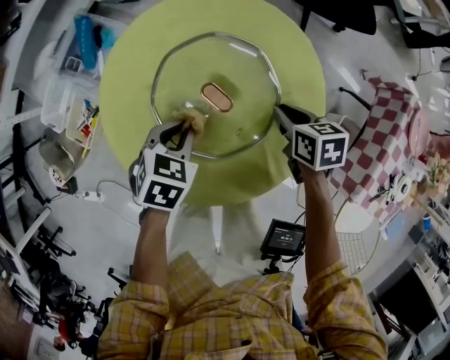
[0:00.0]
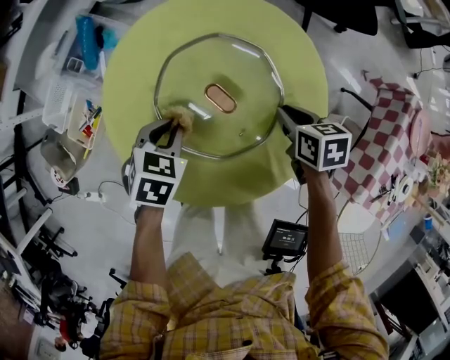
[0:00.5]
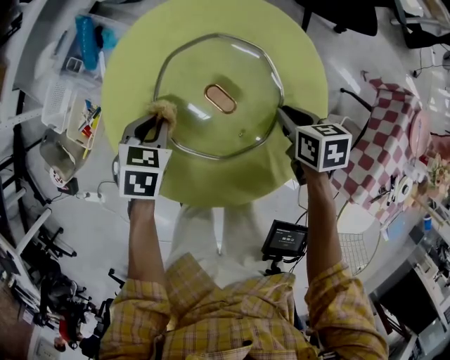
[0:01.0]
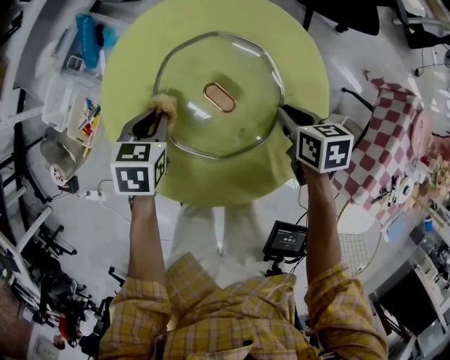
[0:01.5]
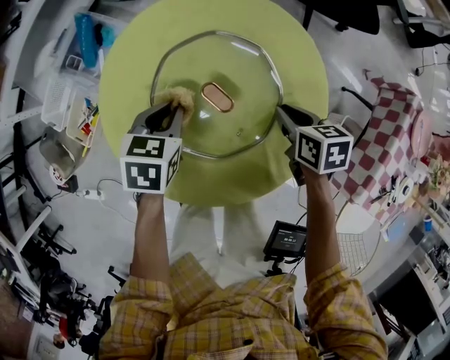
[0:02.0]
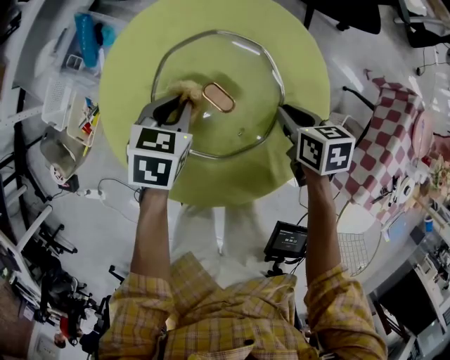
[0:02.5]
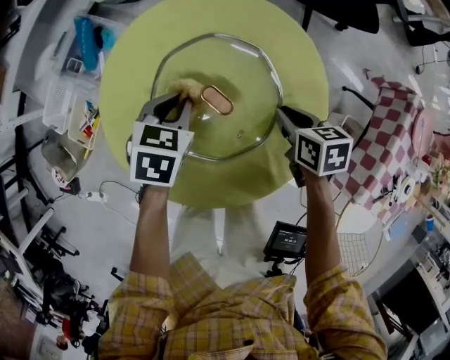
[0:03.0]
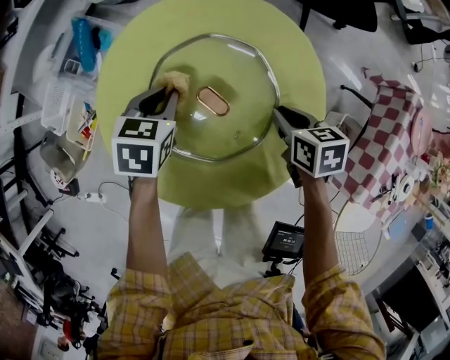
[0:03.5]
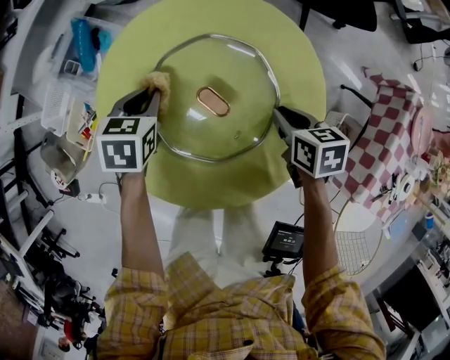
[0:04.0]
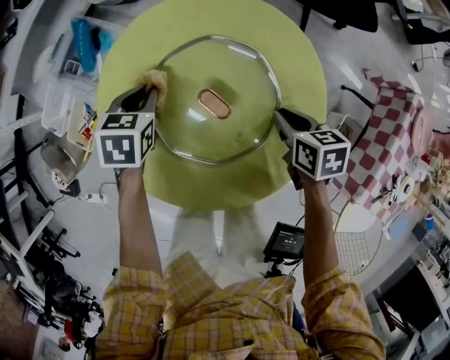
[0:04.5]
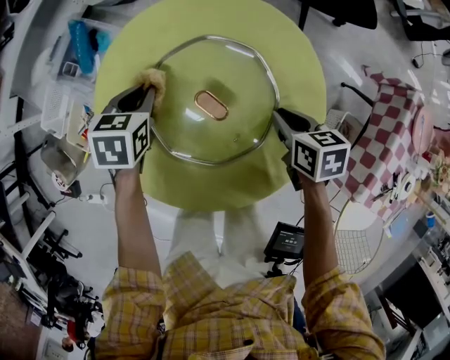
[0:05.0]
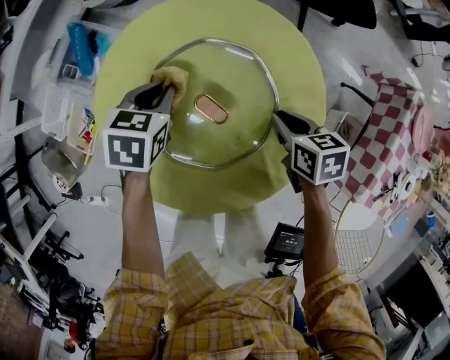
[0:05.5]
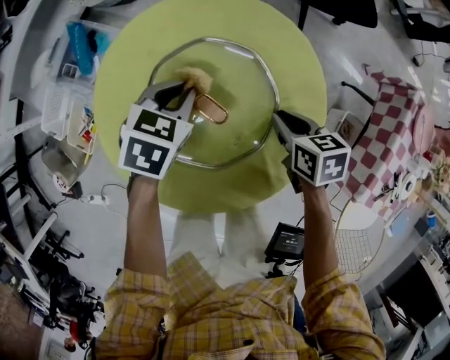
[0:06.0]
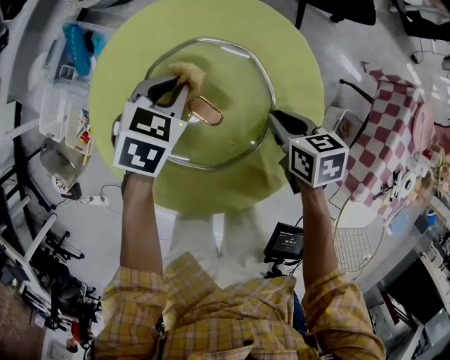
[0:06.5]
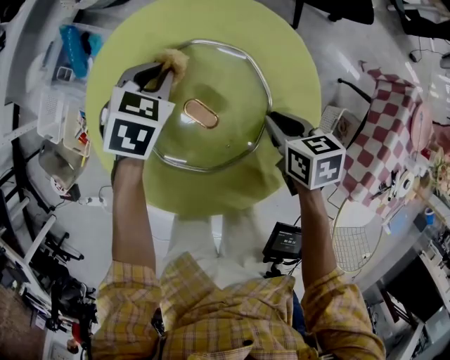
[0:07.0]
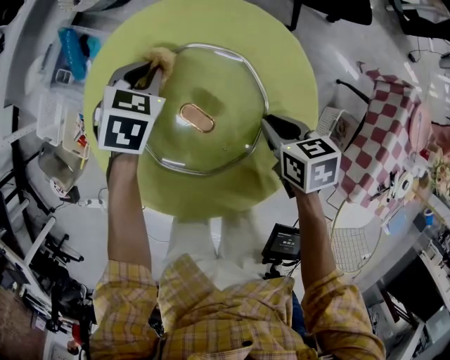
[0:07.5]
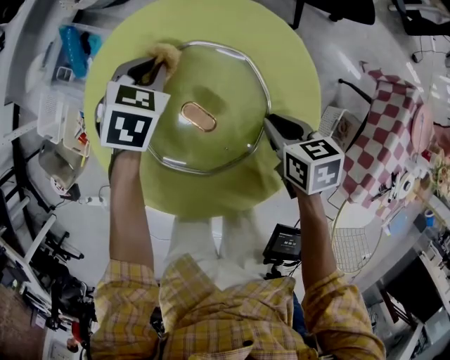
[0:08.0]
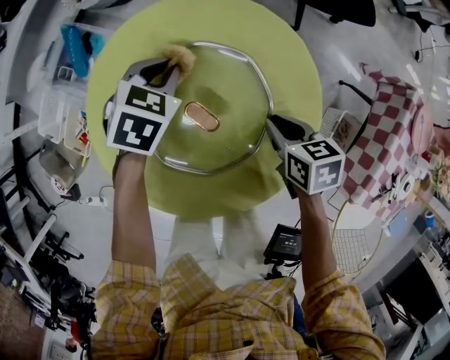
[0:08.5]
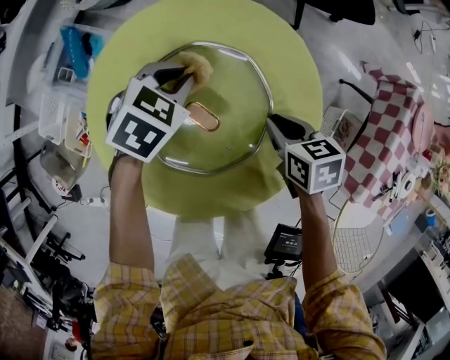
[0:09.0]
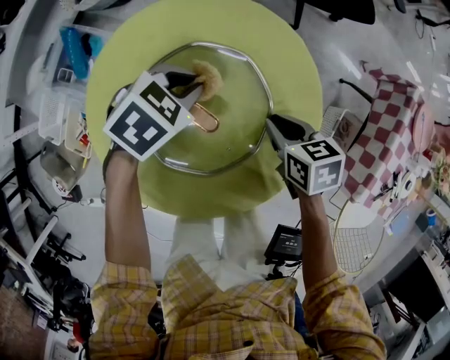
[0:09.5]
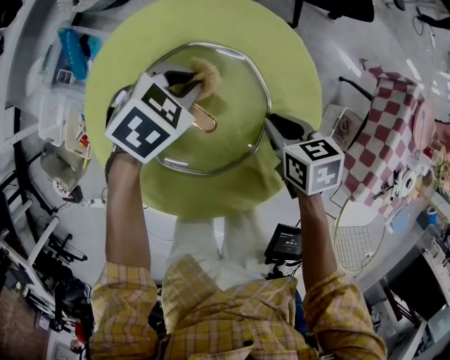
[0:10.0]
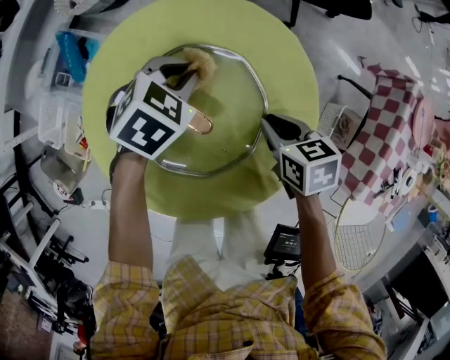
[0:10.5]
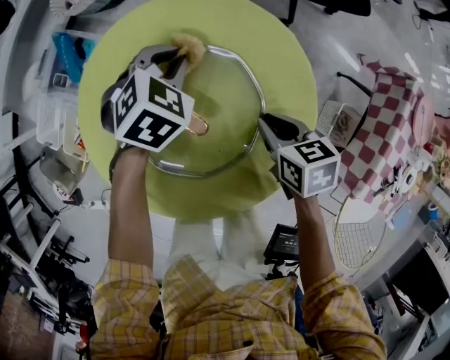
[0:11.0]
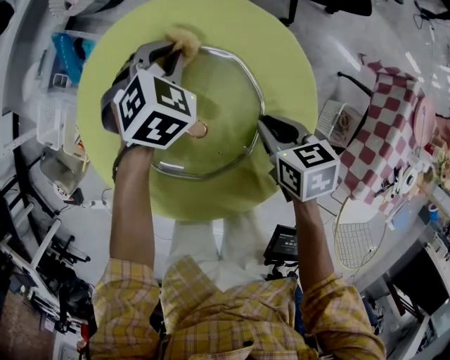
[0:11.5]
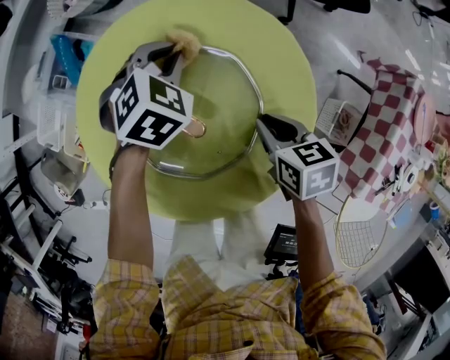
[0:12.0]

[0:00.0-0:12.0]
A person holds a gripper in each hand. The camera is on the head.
0:00.0 to 0:02.0: The left gripper heads forward, covering roughly 5 cm.
0:02.0 to 0:04.0: The left gripper goes approximately 5 cm forward.
0:04.0 to 0:06.0: The left gripper heads to the right, covering approximately 10 cm, and turns by some 20 degrees.
0:06.0 to 0:08.0: The left gripper heads forward, covering about 5 cm.
0:08.0 to 0:10.0: The left gripper changes place by some 10 cm, and swivels roughly 30 degrees.
0:10.0 to 0:12.0: The left gripper heads forward, covering about 5 cm, and rotates approximately 20 degrees.

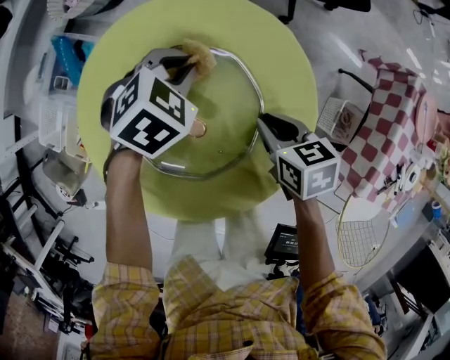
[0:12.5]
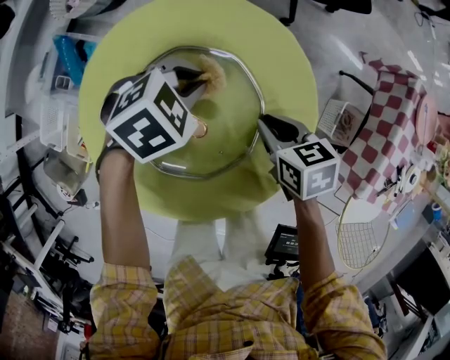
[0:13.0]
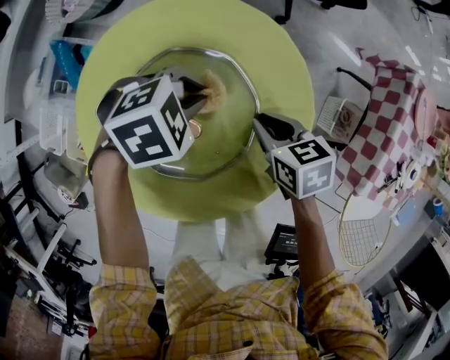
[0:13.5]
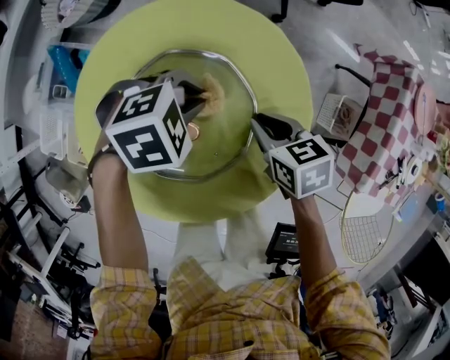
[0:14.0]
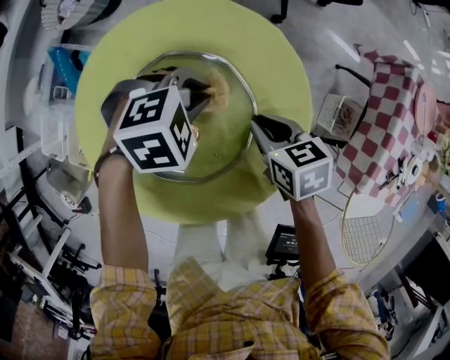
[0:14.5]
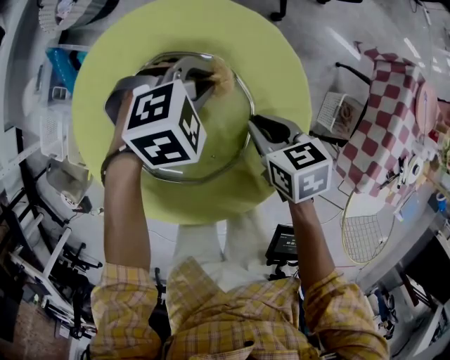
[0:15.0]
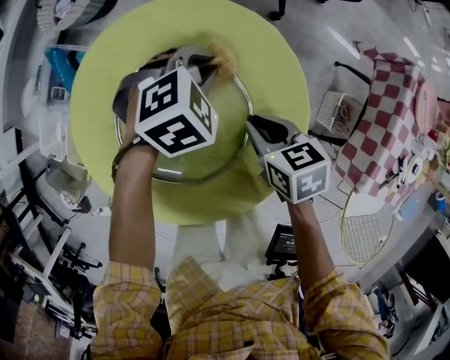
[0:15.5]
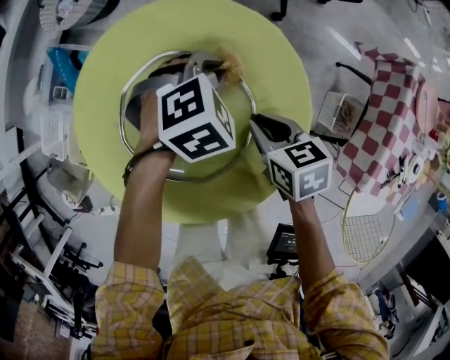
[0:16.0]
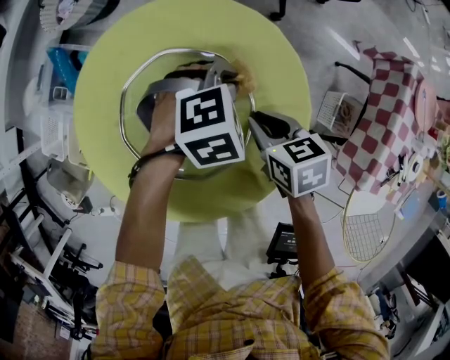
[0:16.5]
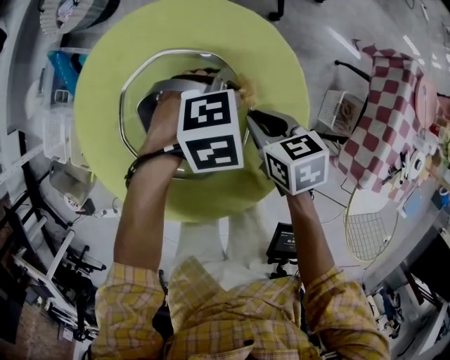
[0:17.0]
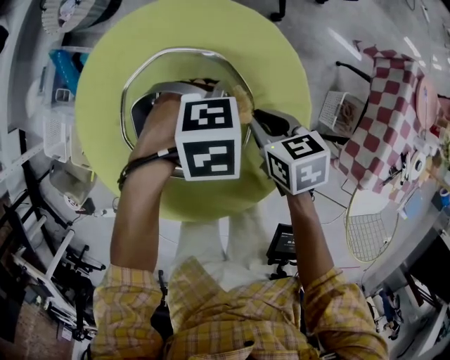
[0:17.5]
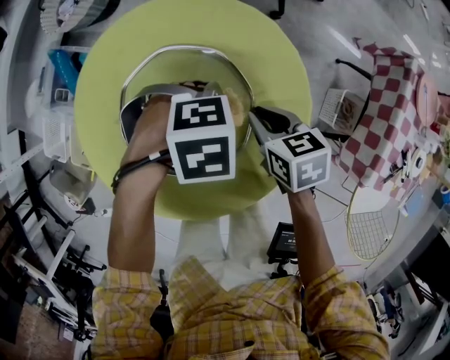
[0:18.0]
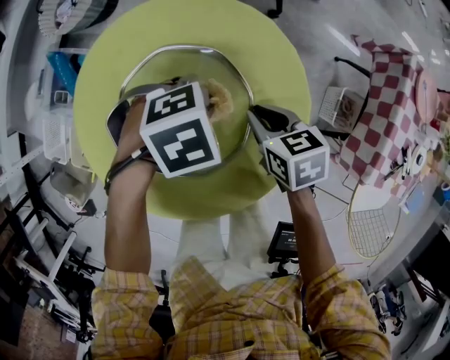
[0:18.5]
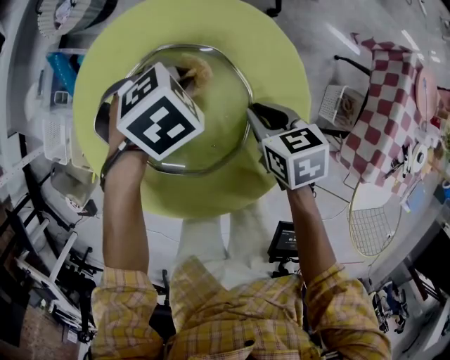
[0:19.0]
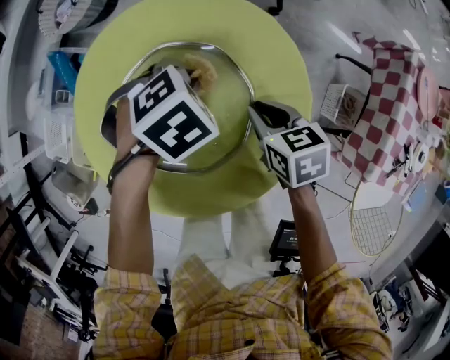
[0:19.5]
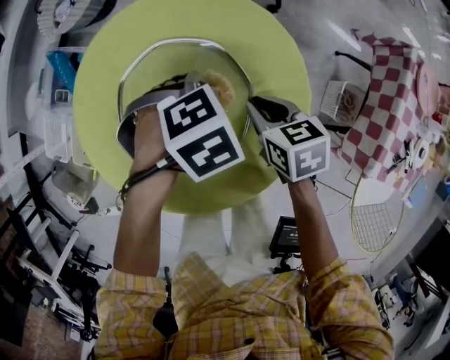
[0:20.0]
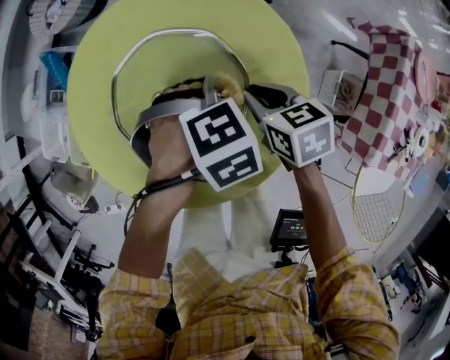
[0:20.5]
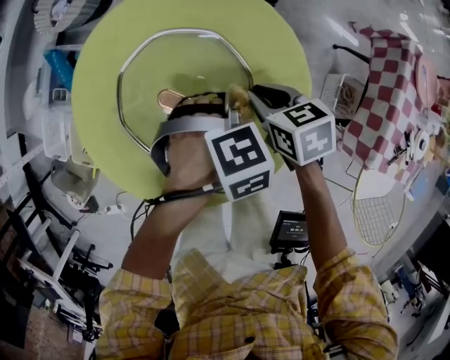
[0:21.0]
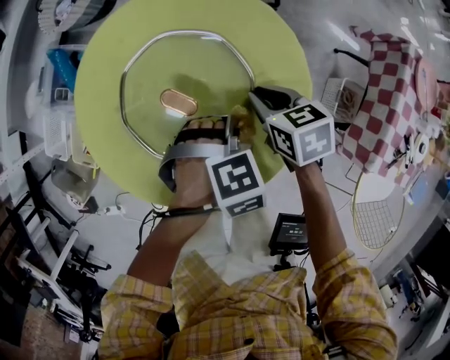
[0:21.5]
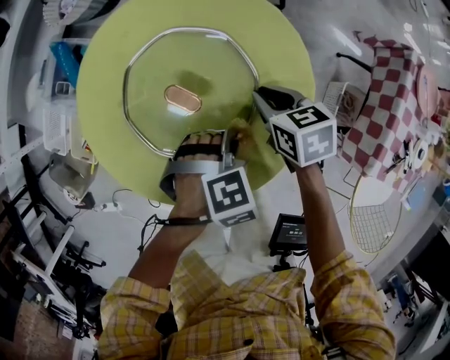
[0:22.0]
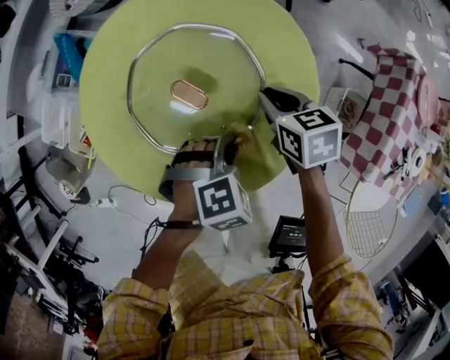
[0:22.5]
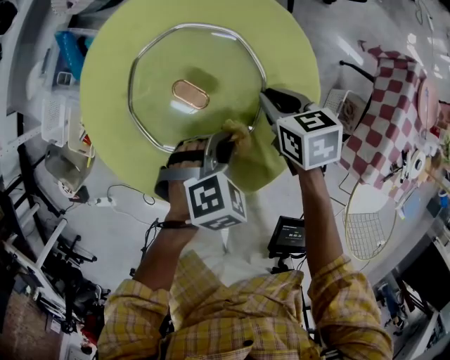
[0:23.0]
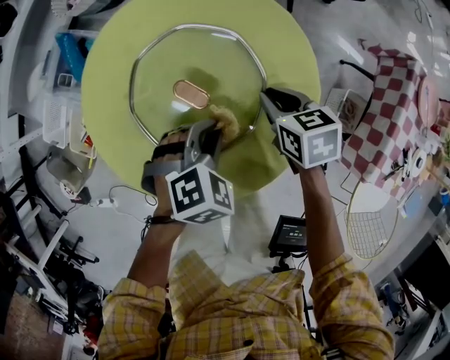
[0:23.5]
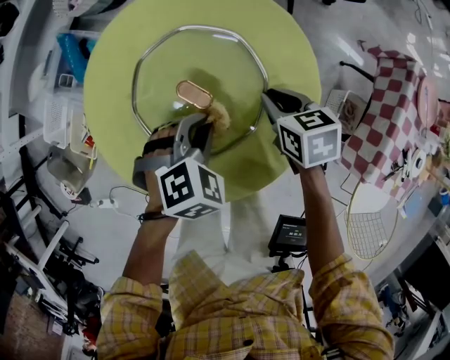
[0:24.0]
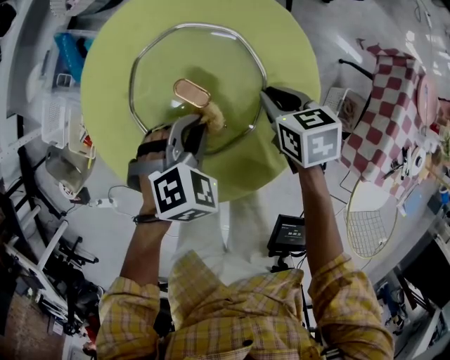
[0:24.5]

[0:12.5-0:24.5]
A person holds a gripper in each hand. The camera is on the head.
0:12.5 to 0:14.5: The left gripper changes place by approximately 5 cm, and changes its angle by roughly 30 degrees.
0:14.5 to 0:16.5: The left gripper moves about 5 cm.
0:16.5 to 0:18.5: The left gripper moves roughly 10 cm, and swivels roughly 20 degrees.
0:20.5 to 0:22.5: The left gripper moves roughly 10 cm.
0:22.5 to 0:24.5: The left gripper goes about 10 cm to the left and forward.

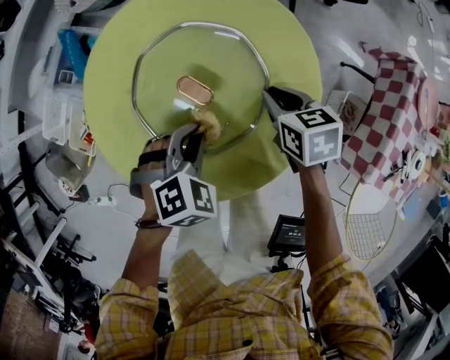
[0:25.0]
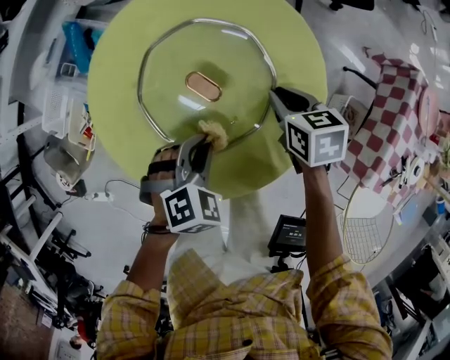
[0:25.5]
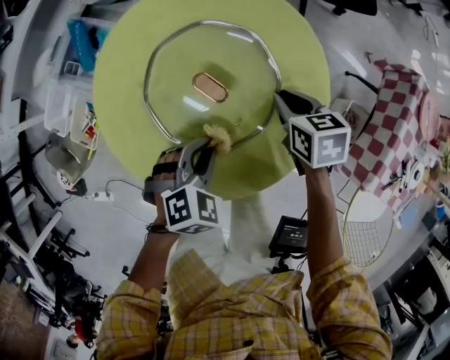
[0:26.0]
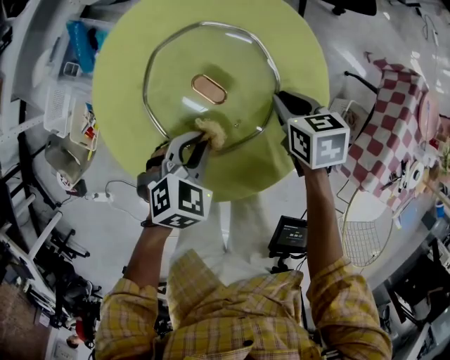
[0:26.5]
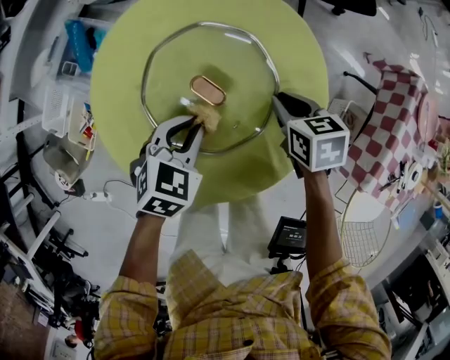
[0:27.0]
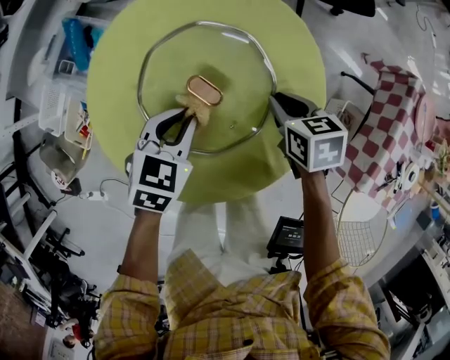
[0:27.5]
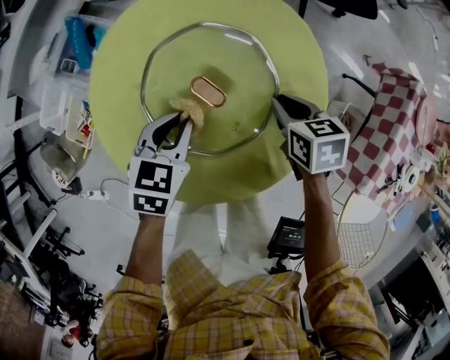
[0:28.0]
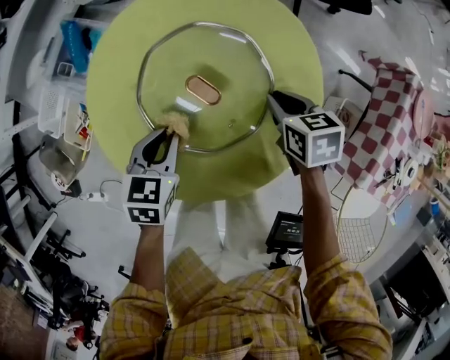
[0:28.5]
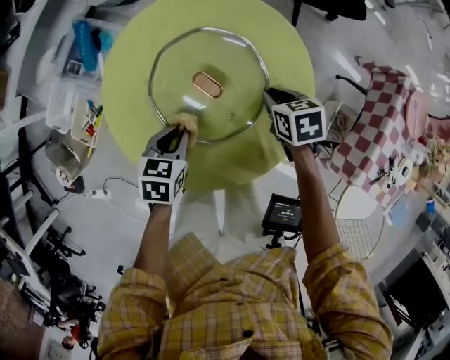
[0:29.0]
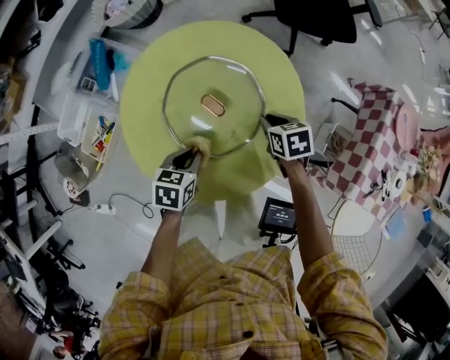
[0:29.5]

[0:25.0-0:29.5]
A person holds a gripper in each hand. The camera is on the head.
0:25.0 to 0:27.0: The left gripper rotates some 30 degrees.
0:27.0 to 0:29.5: The left gripper shifts some 5 cm backward, and turns by roughly 30 degrees.
